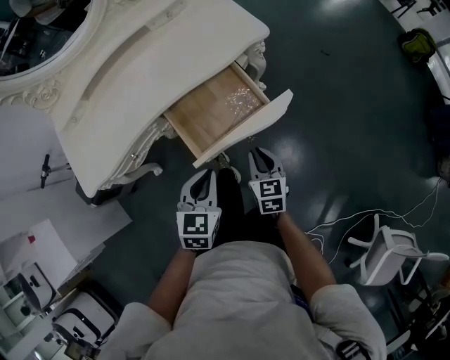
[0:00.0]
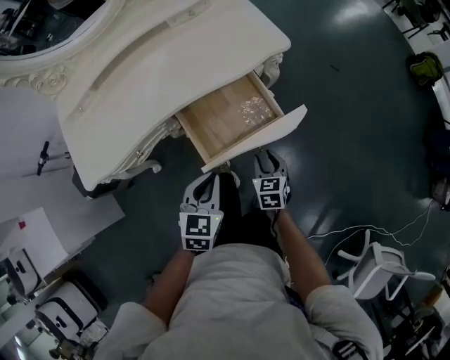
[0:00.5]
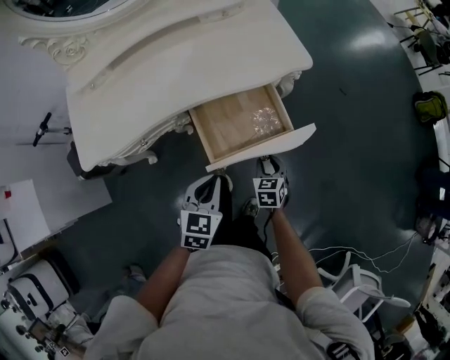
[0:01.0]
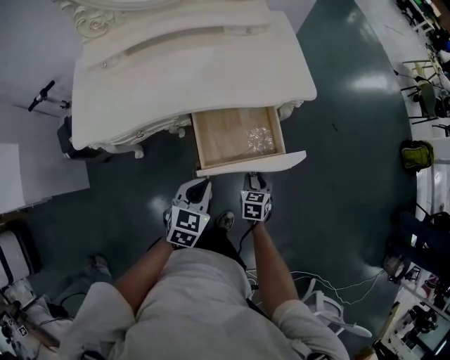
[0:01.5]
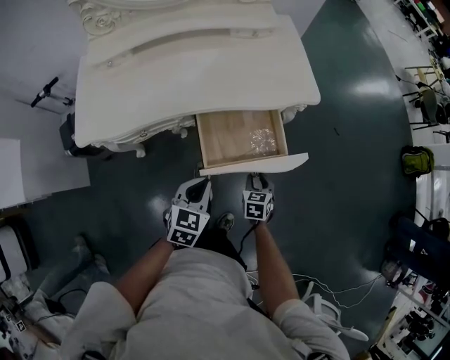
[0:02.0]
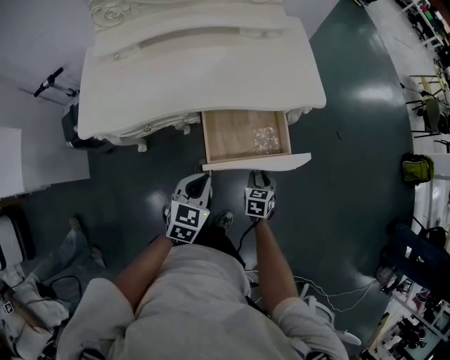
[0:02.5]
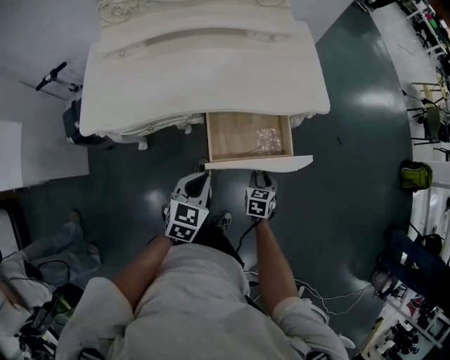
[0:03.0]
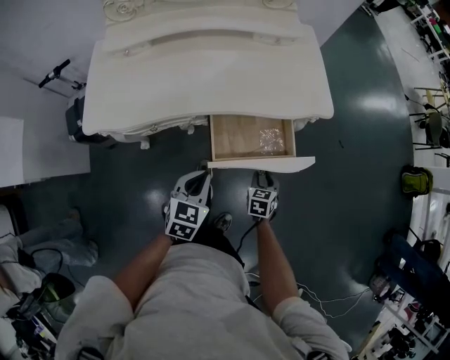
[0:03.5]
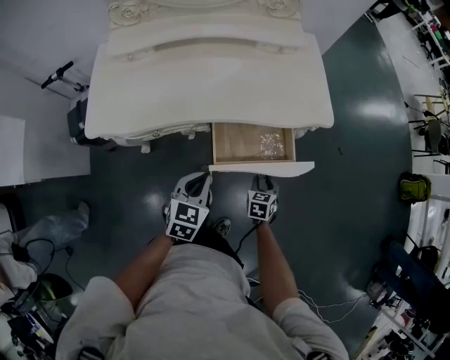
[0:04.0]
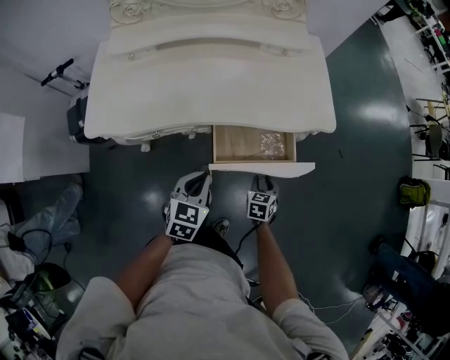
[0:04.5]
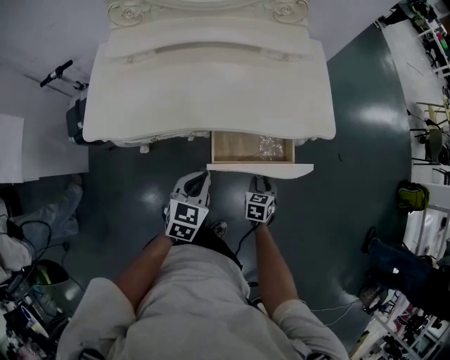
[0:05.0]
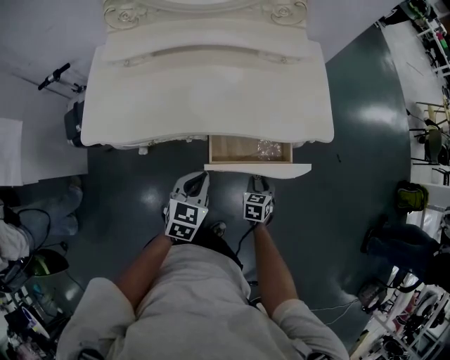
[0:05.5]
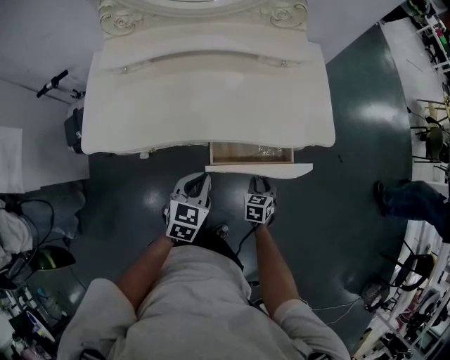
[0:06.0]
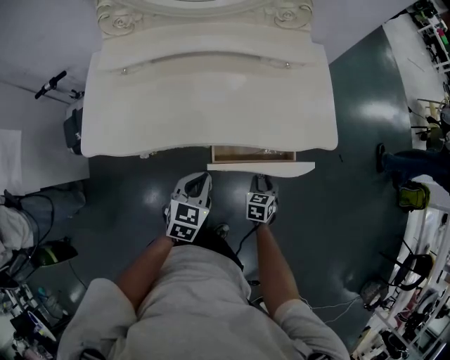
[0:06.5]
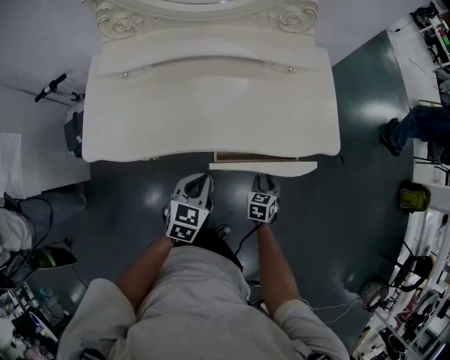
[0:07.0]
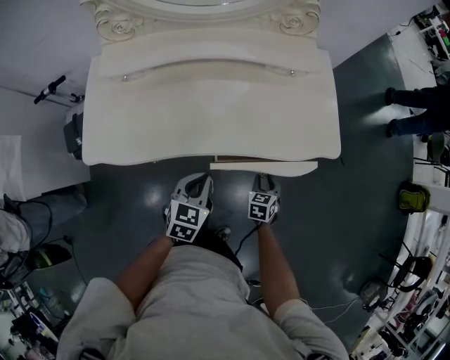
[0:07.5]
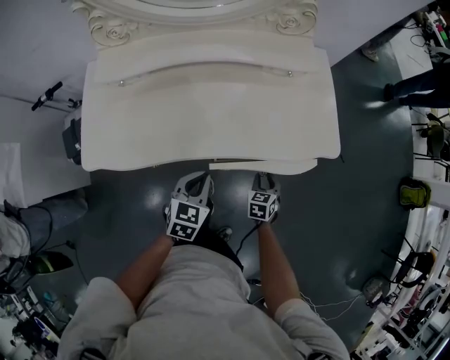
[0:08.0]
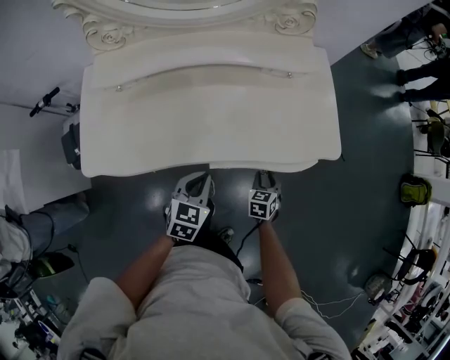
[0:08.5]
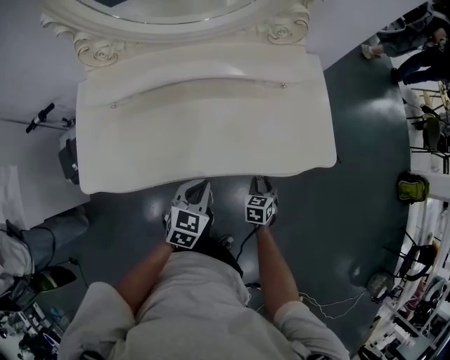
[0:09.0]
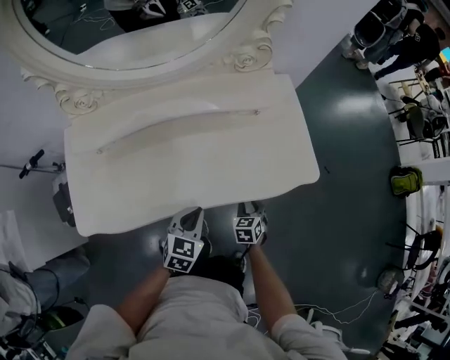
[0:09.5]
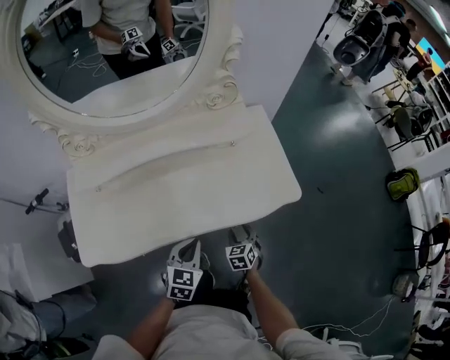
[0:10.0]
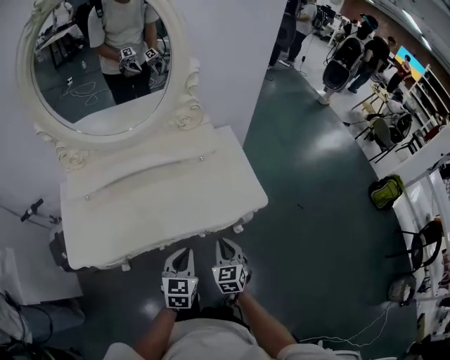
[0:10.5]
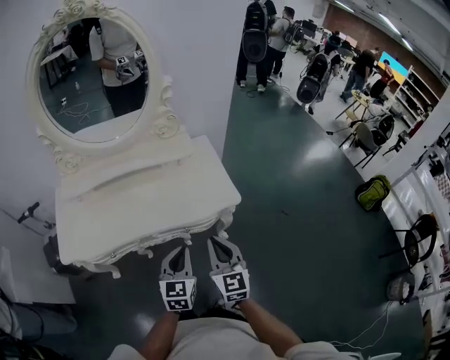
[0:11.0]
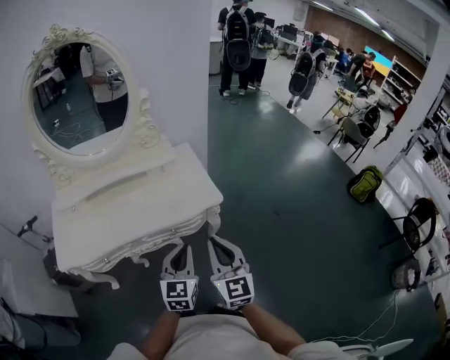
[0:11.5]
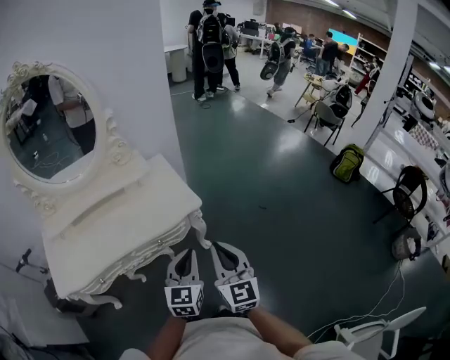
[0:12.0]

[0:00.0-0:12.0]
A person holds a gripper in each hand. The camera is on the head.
0:00.0 to 0:02.0: The left gripper shifts about 5 cm to the left. The right gripper moves downward, approximately 10 cm, rotates roughly 20 degrees, and opens its fingers.
0:02.0 to 0:04.0: The left gripper shifts roughly 5 cm to the left.
0:04.0 to 0:06.0: The grippers both shift forward by approximately 5 cm.
0:06.0 to 0:08.0: The two grippers go roughly 5 cm forward.
0:08.0 to 0:10.0: The left gripper moves roughly 5 cm.
0:10.0 to 0:12.0: The left gripper is displaced to the right and upward by about 35 cm, and turns by roughly 30 degrees. The right gripper heads upward, to the right and backward, covering roughly 50 cm, angles its fingers upward, by approximately 50 degrees, and closes its fingers.

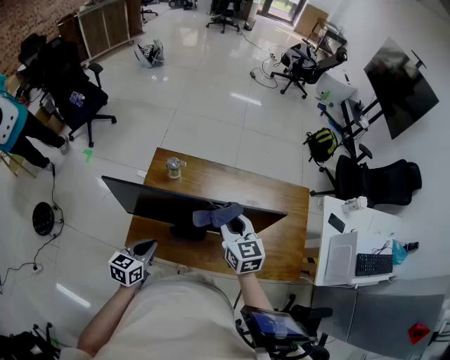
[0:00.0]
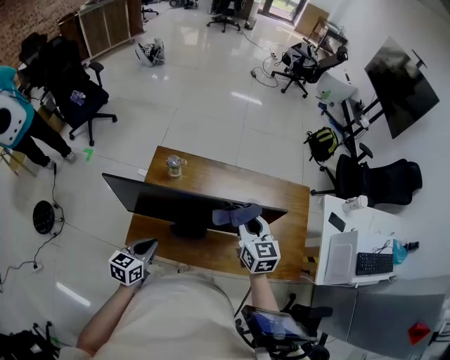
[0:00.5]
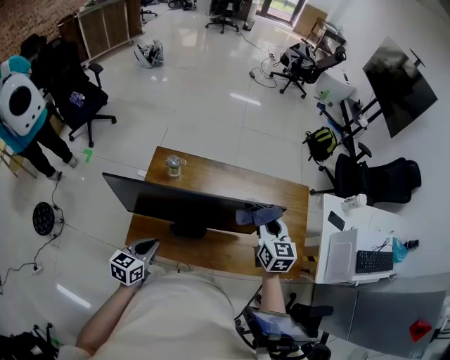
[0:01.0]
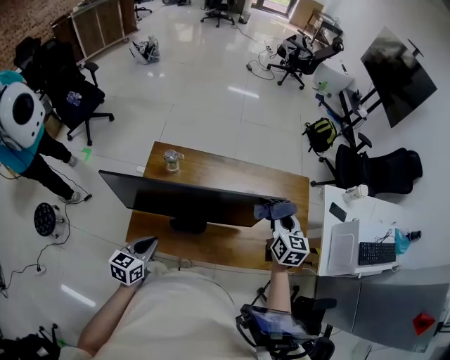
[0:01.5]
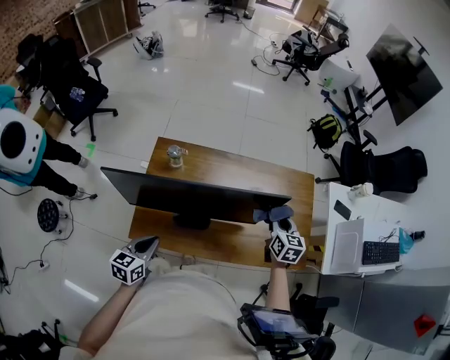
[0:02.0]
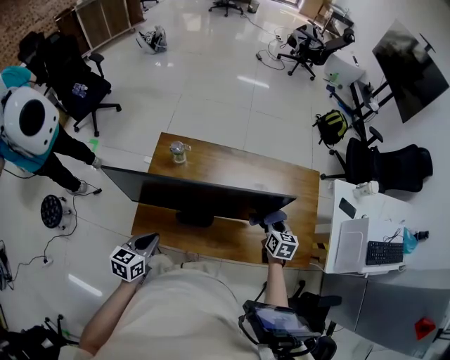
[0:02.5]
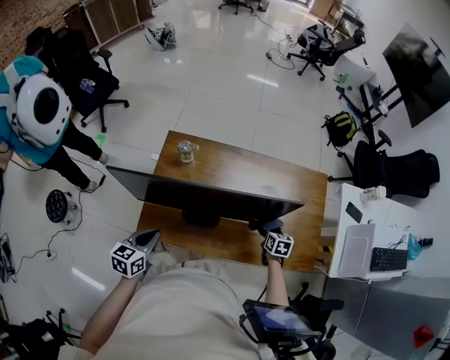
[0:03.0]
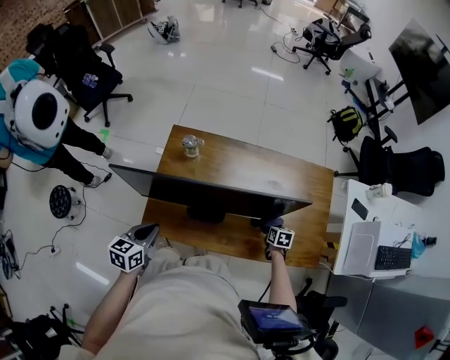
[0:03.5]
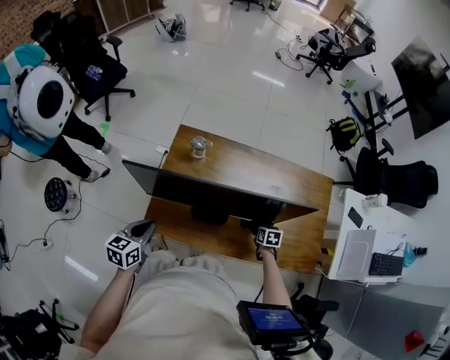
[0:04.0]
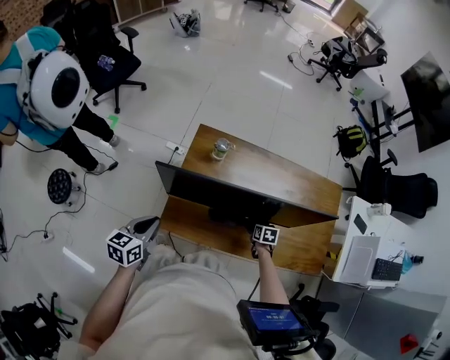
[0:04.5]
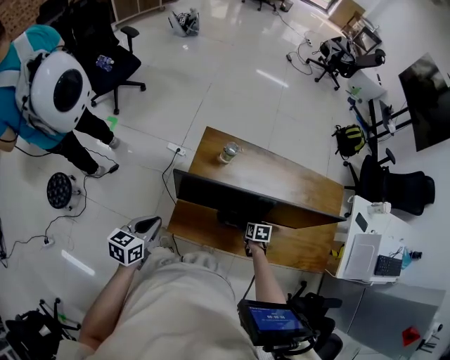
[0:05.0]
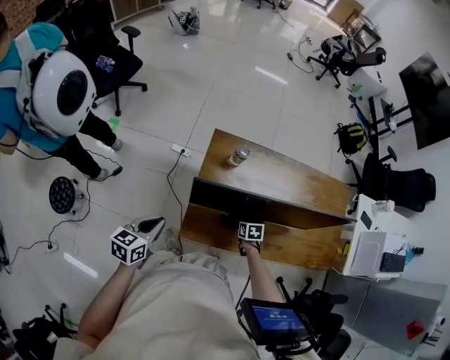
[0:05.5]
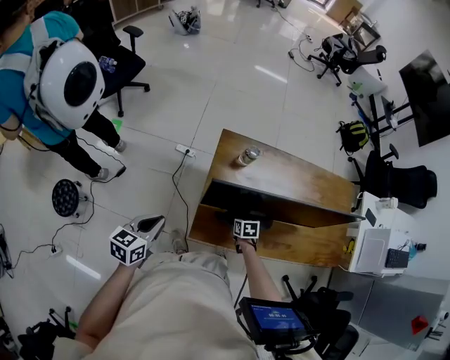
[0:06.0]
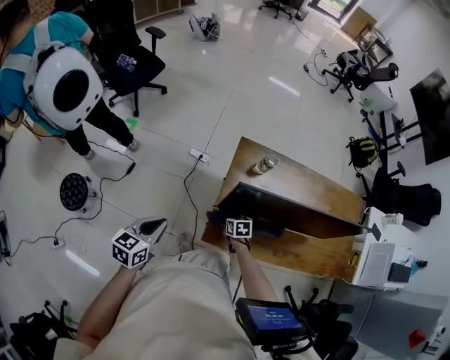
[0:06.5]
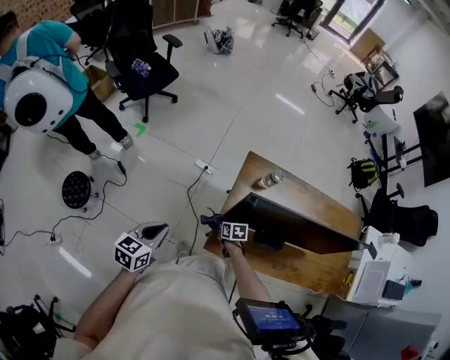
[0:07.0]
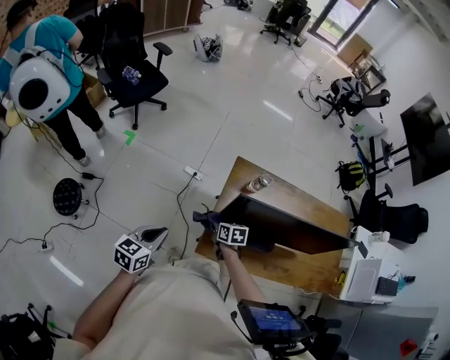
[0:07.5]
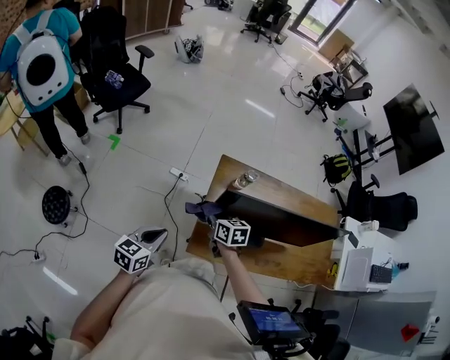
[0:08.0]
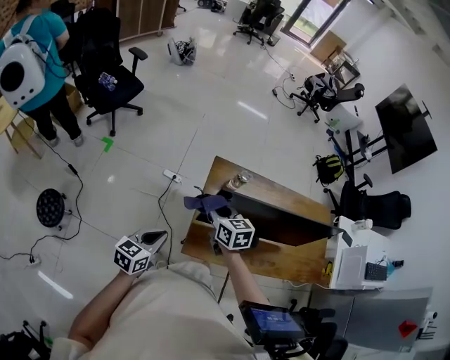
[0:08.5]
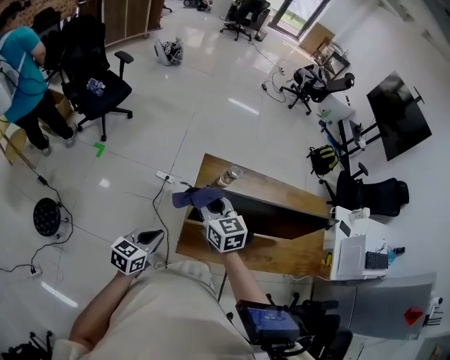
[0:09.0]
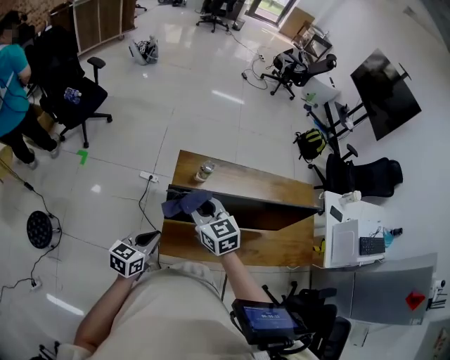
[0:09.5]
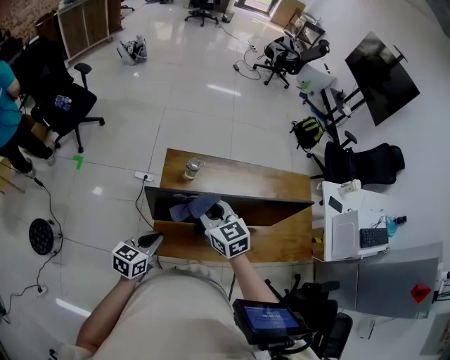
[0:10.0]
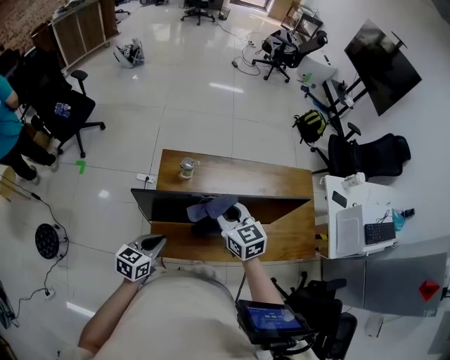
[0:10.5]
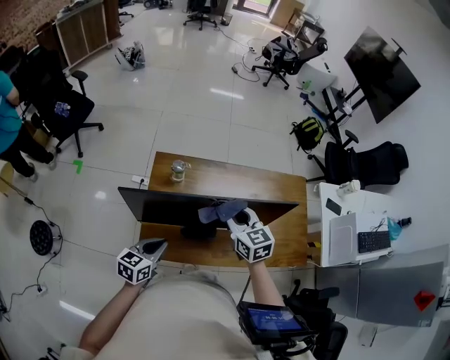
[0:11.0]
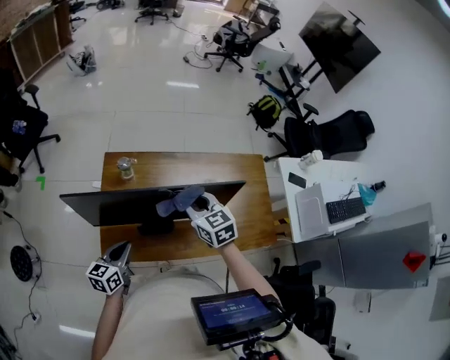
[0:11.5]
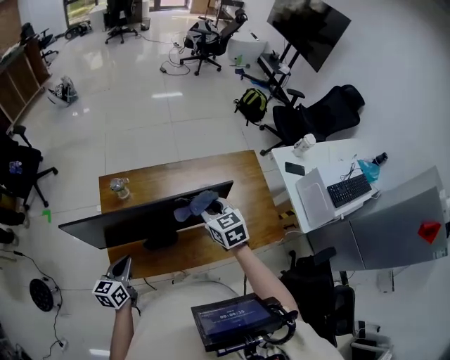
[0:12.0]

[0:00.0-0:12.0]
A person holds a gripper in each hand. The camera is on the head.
0:00.0 to 0:02.0: The right gripper shifts roughly 20 cm to the right and downward, and swivels roughly 30 degrees.
0:02.0 to 0:04.0: The left gripper is displaced to the left by about 10 cm. The right gripper is displaced downward by about 25 cm, and tips its fingers downward by some 30 degrees.
0:04.0 to 0:06.0: The left gripper heads to the left, covering about 20 cm, while the right gripper shifts approximately 35 cm to the left.
0:06.0 to 0:08.0: The right gripper is displaced upward and to the left by approximately 25 cm, and turns by approximately 30 degrees.
0:08.0 to 0:10.0: The left gripper is displaced to the right by roughly 20 cm. Meanwhile the right gripper is displaced to the right and upward by approximately 20 cm, and changes its angle by about 30 degrees.
0:10.0 to 0:12.0: The right gripper travels to the right by roughly 30 cm; the left gripper moves to the right, roughly 15 cm.

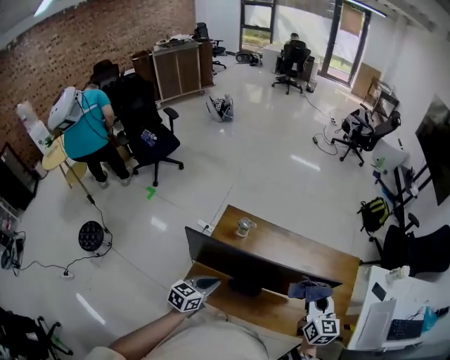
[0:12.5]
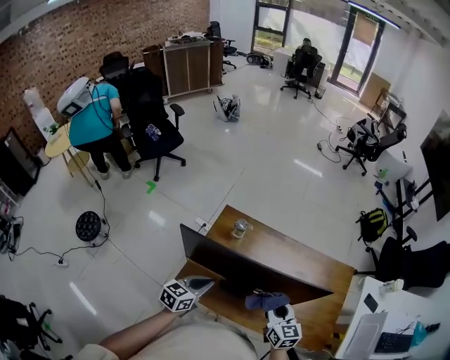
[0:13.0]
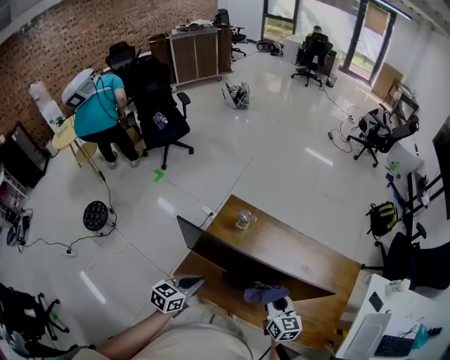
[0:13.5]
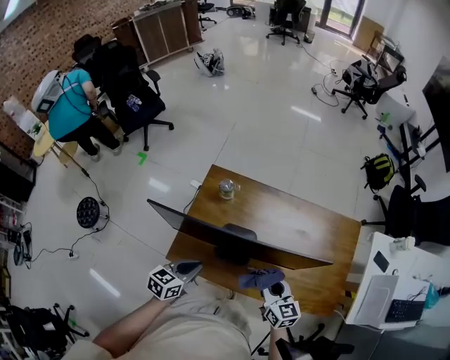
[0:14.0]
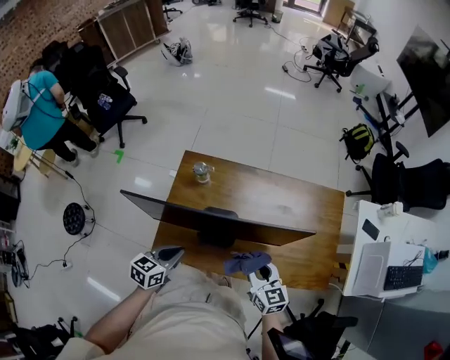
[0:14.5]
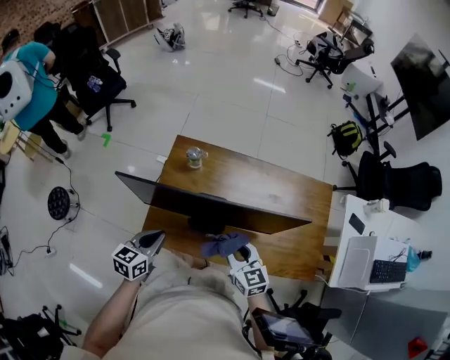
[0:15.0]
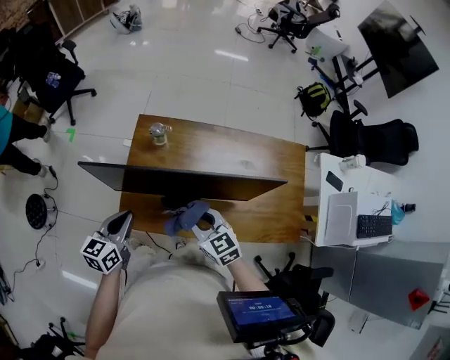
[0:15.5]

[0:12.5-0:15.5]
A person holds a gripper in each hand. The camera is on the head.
0:12.5 to 0:14.0: The right gripper shifts approximately 15 cm downward, to the left and backward, and turns by approximately 20 degrees.
0:14.0 to 0:15.5: The right gripper goes some 15 cm to the left; the left gripper travels to the left and upward by some 10 cm.
